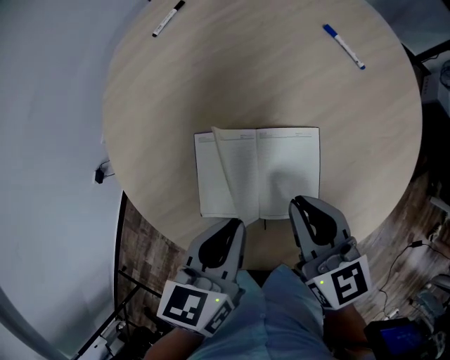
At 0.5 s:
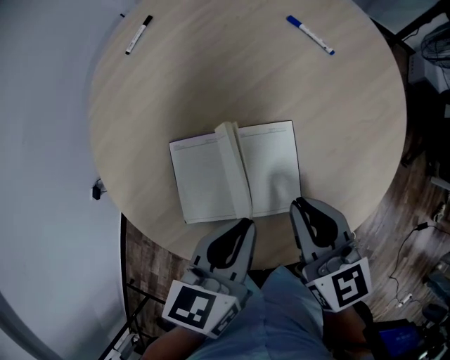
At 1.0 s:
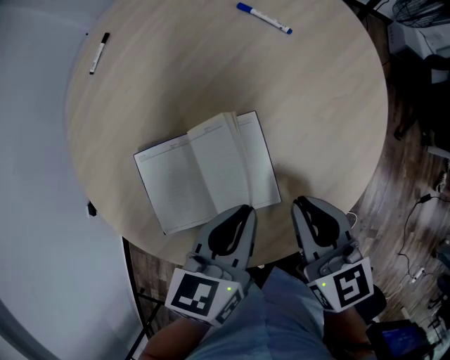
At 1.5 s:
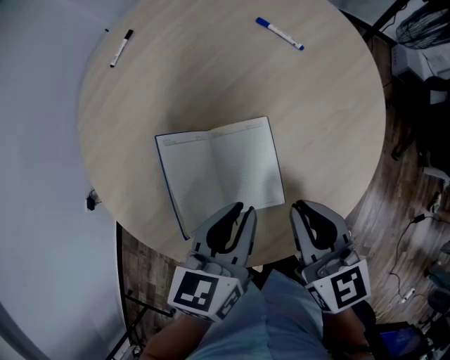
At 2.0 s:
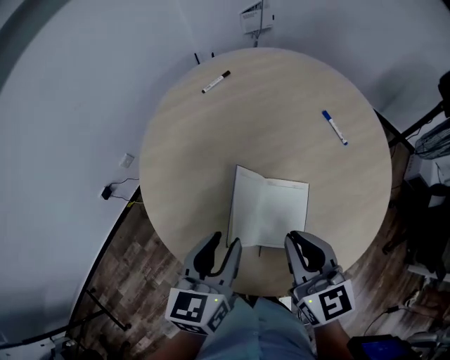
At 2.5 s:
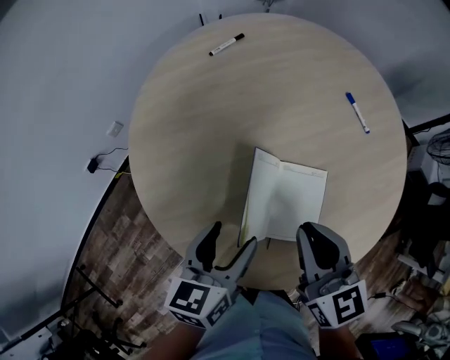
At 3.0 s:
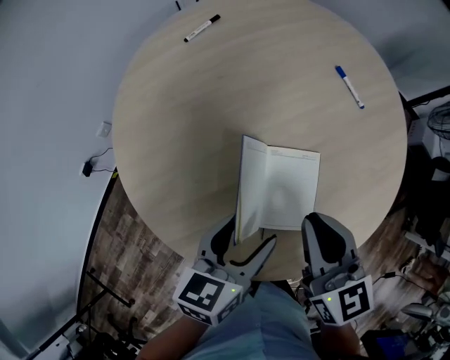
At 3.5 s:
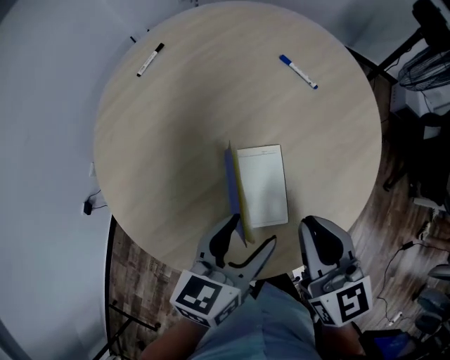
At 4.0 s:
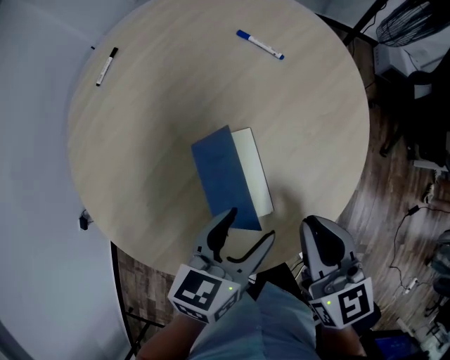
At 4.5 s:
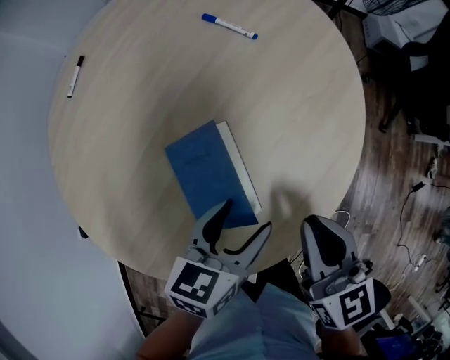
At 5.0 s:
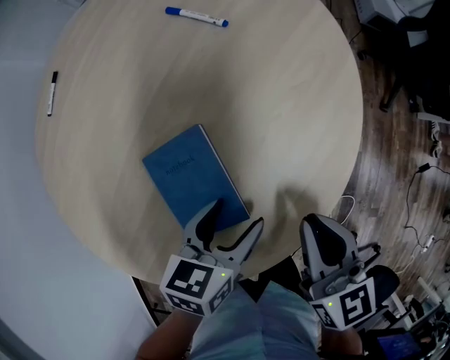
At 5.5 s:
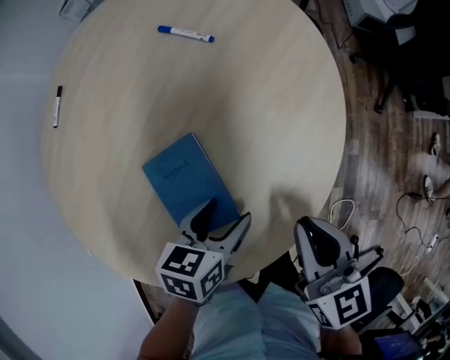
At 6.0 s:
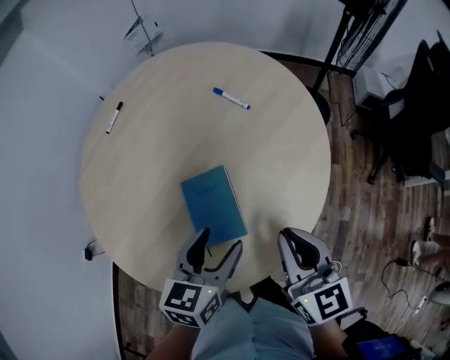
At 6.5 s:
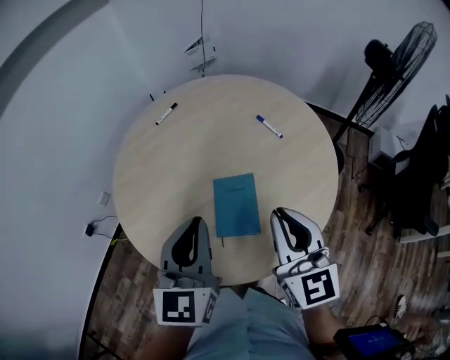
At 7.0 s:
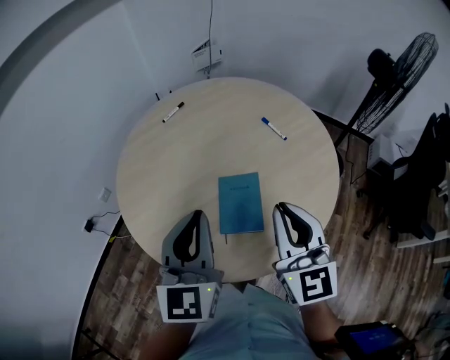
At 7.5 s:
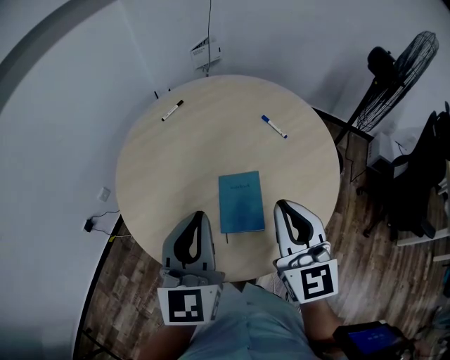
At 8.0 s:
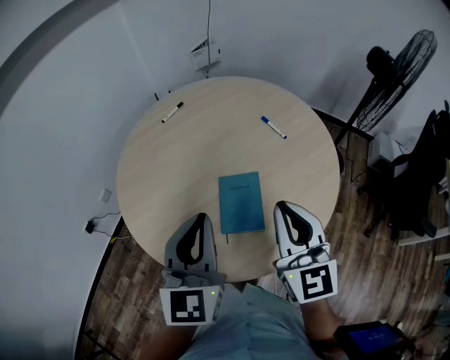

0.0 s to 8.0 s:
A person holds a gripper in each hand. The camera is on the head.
0.0 to 2.0 s: The two grippers go roughly 10 cm upward. The left gripper rotates about 20 degrees, and opens its fingers.
2.0 to 4.0 s: The right gripper changes place by about 15 cm, and rotates roughly 30 degrees, while the left gripper changes place by approximately 20 cm, rotates approximately 40 degrees, and opens.
4.0 to 6.0 s: The left gripper reaches some 10 cm downward, then returns; the right gripper travels to the right by approximately 5 cm, and goes downward and returns, approximately 10 cm each way.
6.0 to 8.0 s: Both grippers move upward and to the left, approximately 20 cm. The right gripper rotates roughly 30 degrees. The left gripper rotates approximately 40 degrees, and closes.

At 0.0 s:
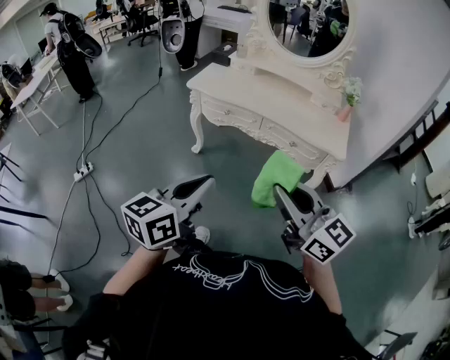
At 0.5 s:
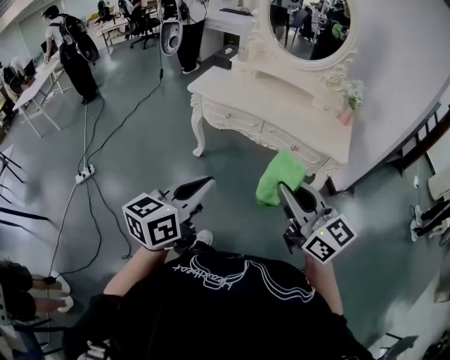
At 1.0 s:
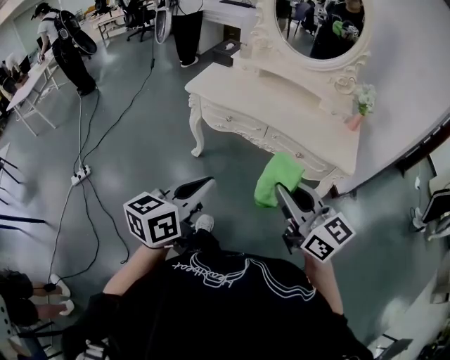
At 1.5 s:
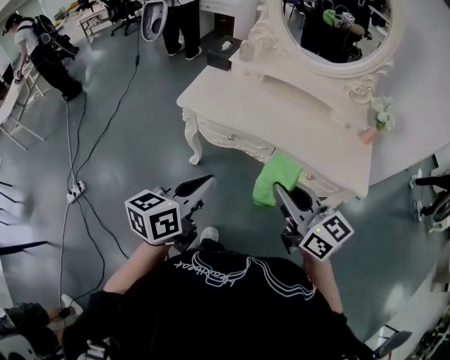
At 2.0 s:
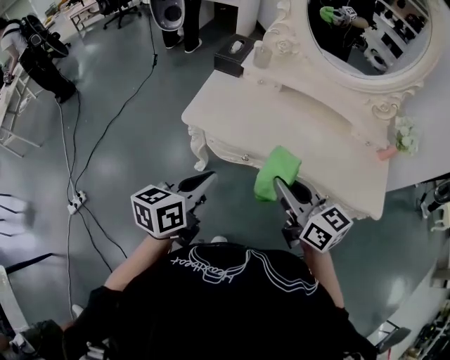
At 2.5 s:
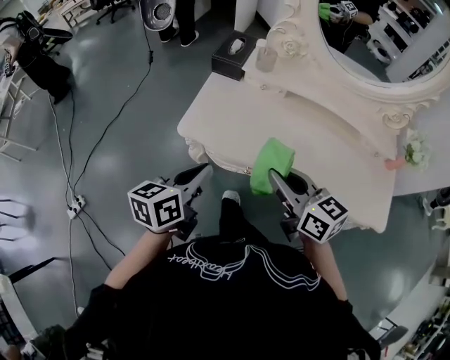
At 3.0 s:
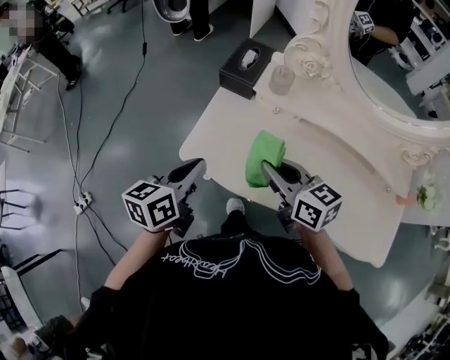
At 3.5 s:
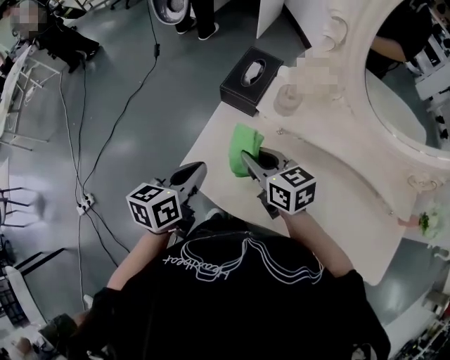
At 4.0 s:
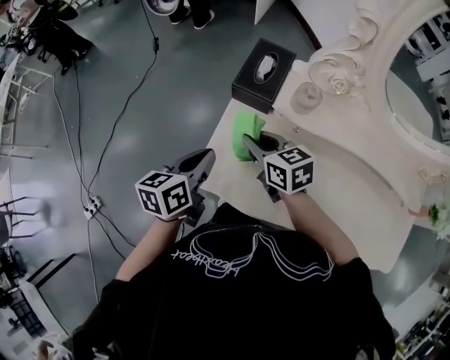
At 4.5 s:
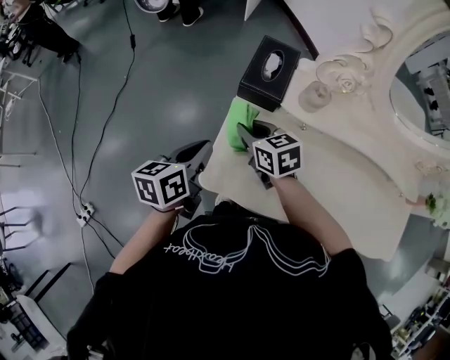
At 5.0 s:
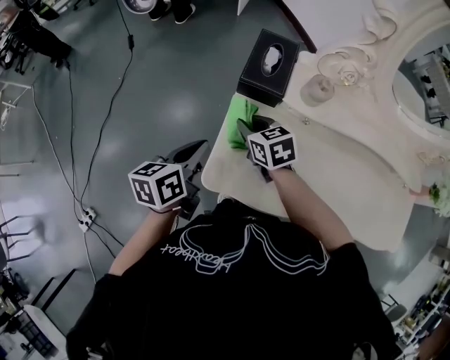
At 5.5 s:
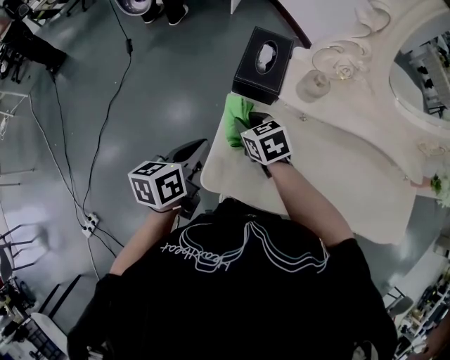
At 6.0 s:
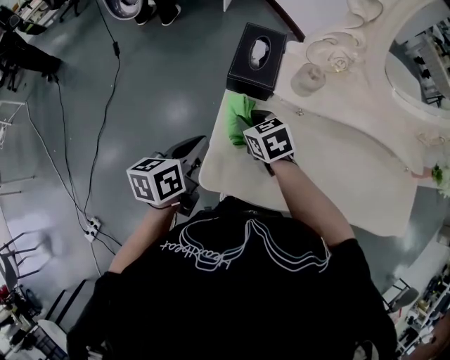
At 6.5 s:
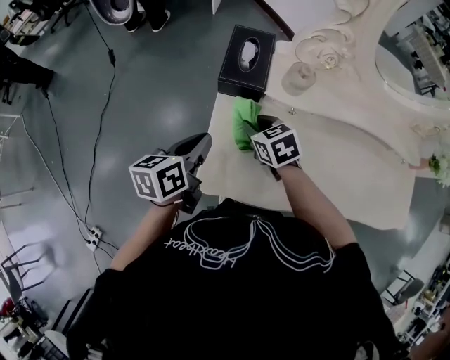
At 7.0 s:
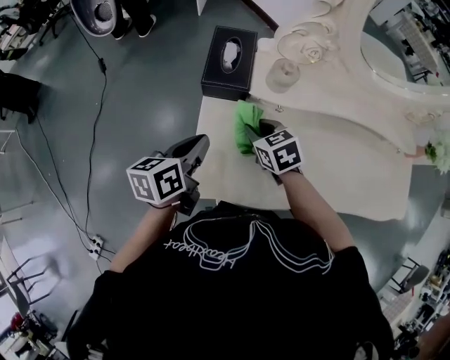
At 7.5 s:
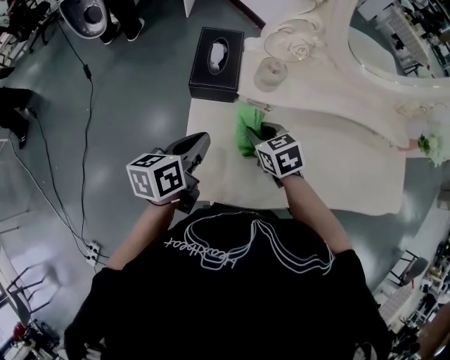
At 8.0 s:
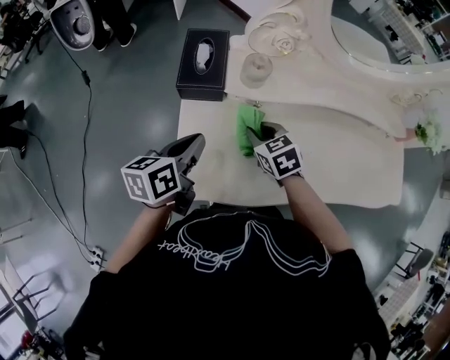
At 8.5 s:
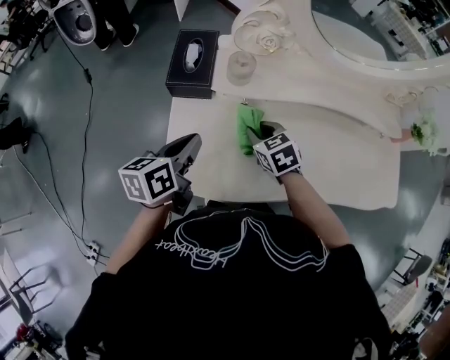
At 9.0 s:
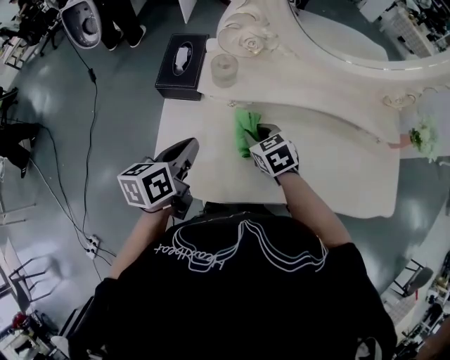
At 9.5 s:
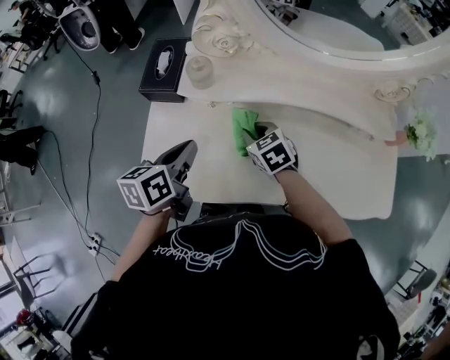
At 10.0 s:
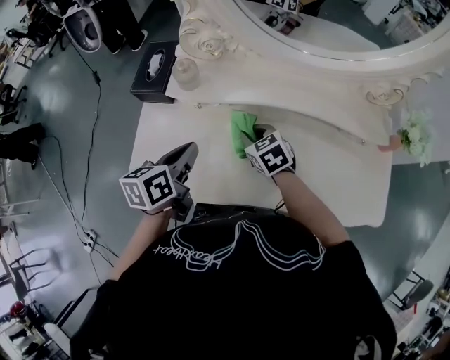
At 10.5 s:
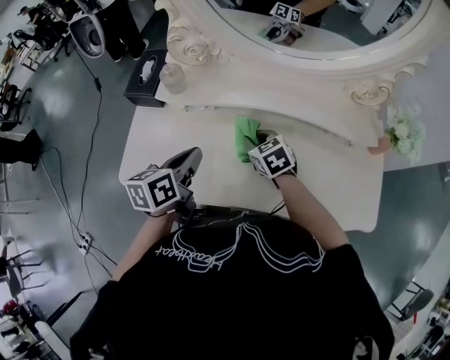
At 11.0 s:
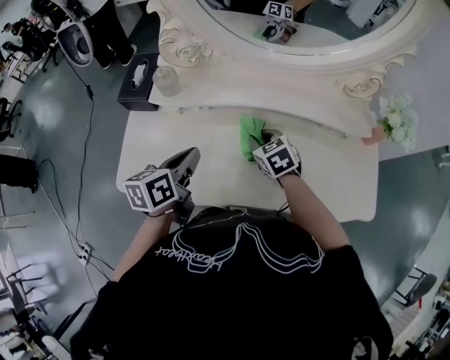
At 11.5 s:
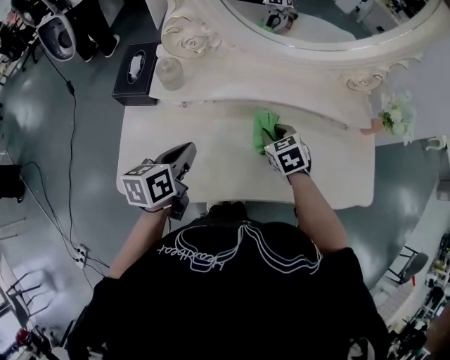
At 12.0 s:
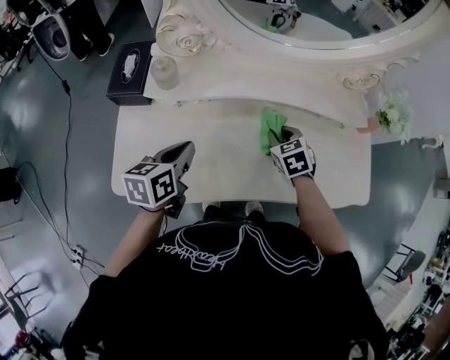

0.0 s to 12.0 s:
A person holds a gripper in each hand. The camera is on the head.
0.0 to 2.0 s: The pair of grippers is taken forward, approximately 50 cm. The right gripper changes its angle by some 20 degrees.
2.0 to 4.0 s: The two grippers go about 40 cm forward. The right gripper swivels some 20 degrees.
4.0 to 6.0 s: The right gripper is displaced downward by roughly 10 cm, and changes its angle by approximately 20 degrees. Meanwhile the left gripper moves approximately 5 cm.
6.0 to 8.0 s: The left gripper is displaced to the right by roughly 10 cm; the right gripper heads to the right, covering about 15 cm.
8.0 to 10.0 s: Both grippers move to the right, about 15 cm.
10.0 to 12.0 s: The right gripper heads to the right, covering approximately 15 cm, and changes its angle by about 20 degrees.

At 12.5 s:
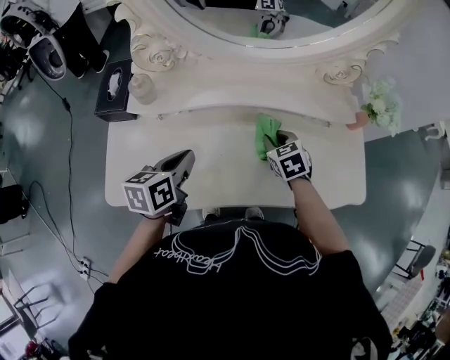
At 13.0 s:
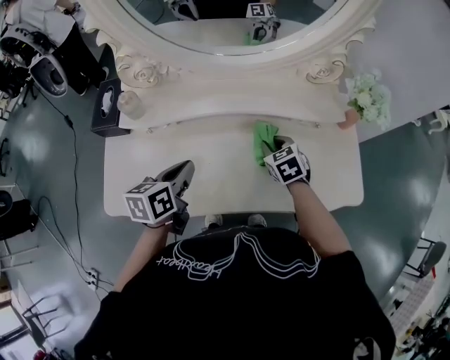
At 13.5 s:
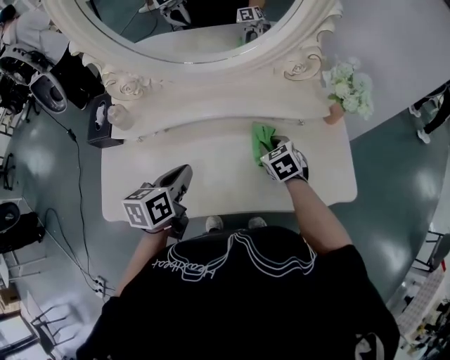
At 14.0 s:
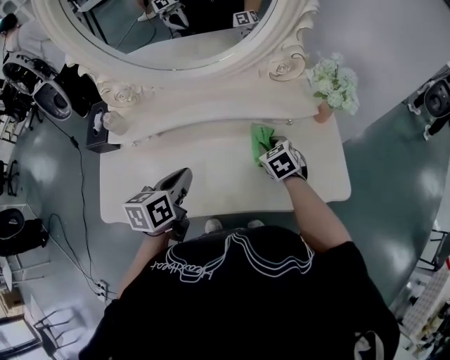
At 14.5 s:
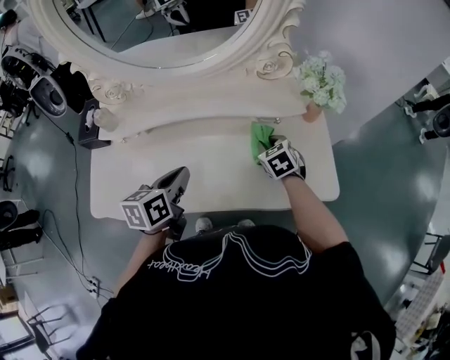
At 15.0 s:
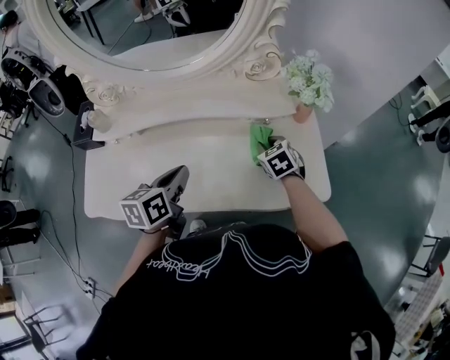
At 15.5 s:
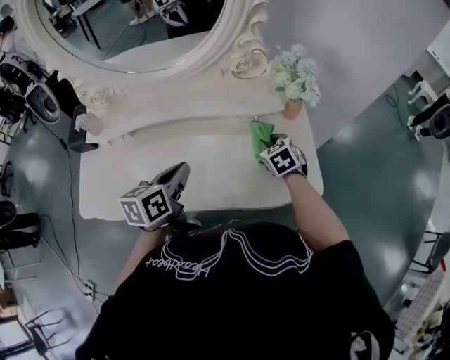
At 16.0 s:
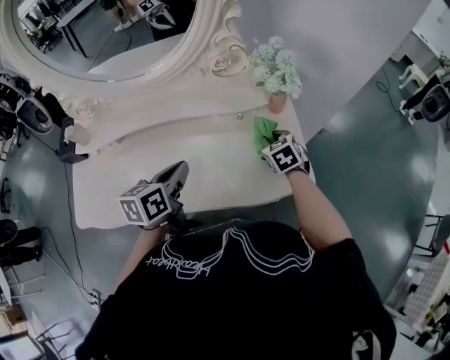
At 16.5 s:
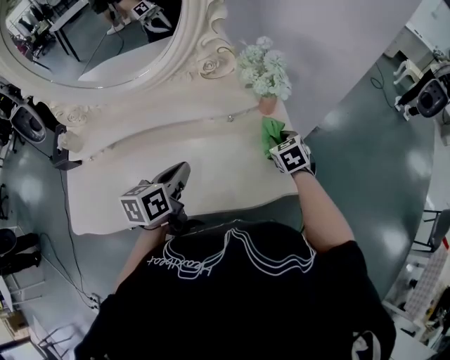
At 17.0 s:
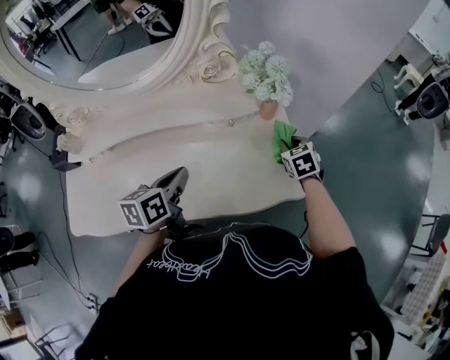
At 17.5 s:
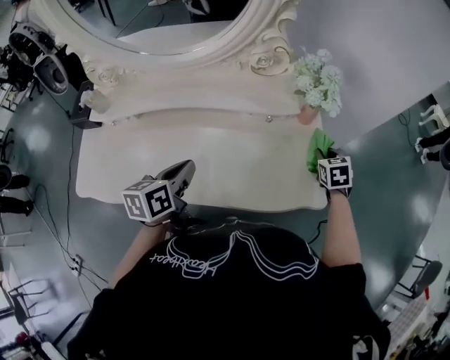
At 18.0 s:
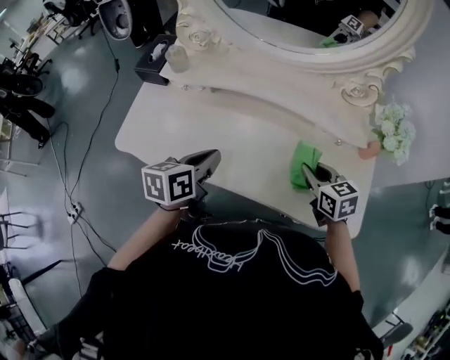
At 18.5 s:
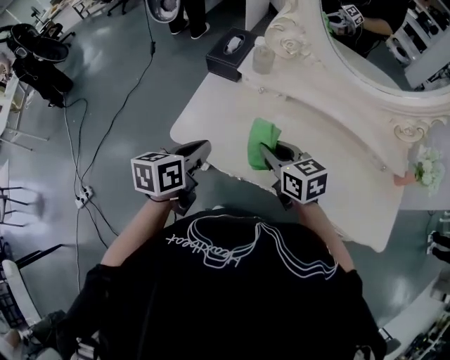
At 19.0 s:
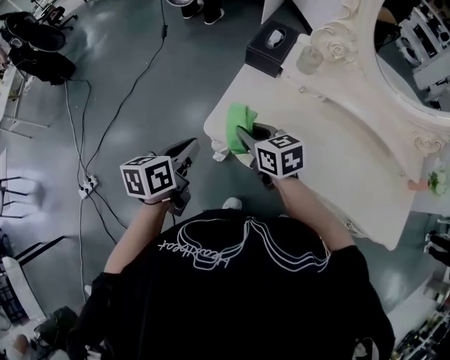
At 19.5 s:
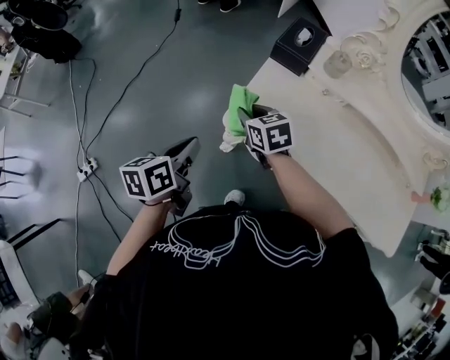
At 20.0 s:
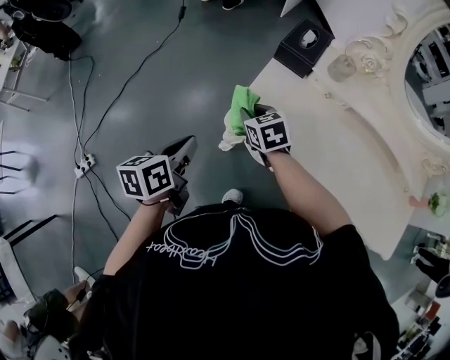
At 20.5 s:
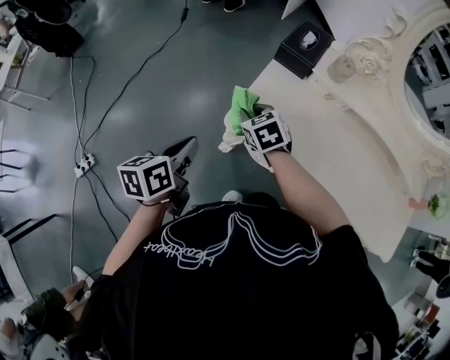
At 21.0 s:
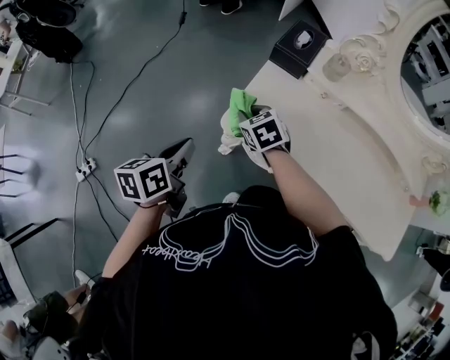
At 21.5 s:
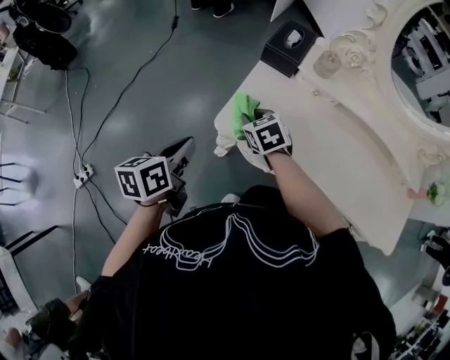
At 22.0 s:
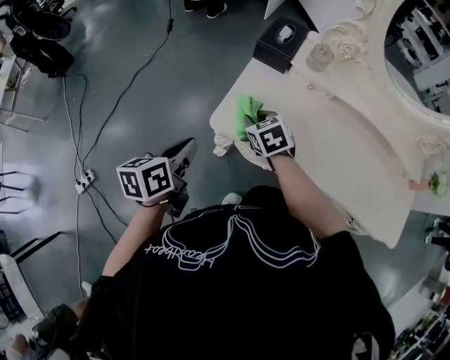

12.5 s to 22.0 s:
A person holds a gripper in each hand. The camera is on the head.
12.5 to 14.5 s: Both grippers move to the right, roughly 15 cm.
14.5 to 16.5 s: Both grippers move to the right, about 15 cm.
16.5 to 18.0 s: The left gripper changes place by some 20 cm. Meanwhile the right gripper moves approximately 25 cm, and rotates some 30 degrees.
18.0 to 20.0 s: Both grippers are carried to the left, about 60 cm. The right gripper rotates about 20 degrees; the left gripper changes its angle by some 20 degrees.
20.0 to 22.0 s: The right gripper heads to the right, covering some 5 cm.
